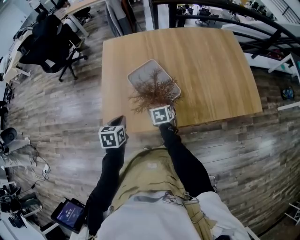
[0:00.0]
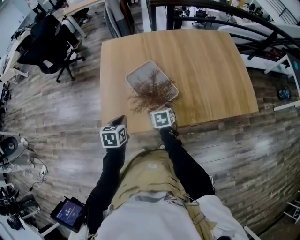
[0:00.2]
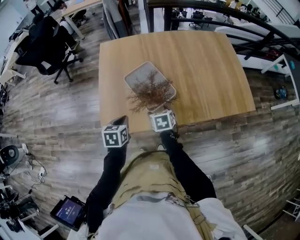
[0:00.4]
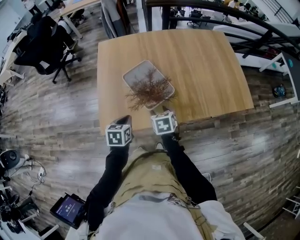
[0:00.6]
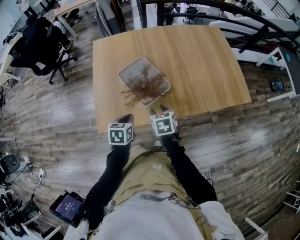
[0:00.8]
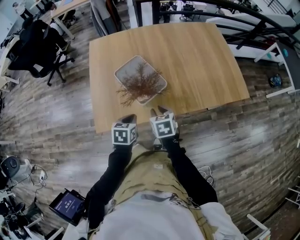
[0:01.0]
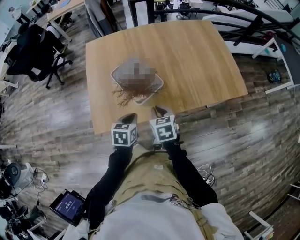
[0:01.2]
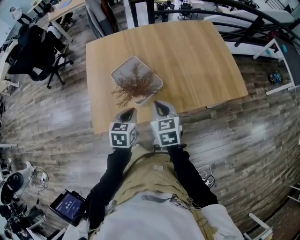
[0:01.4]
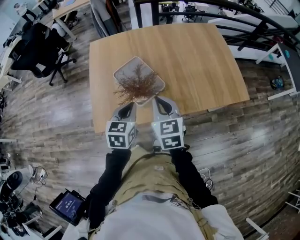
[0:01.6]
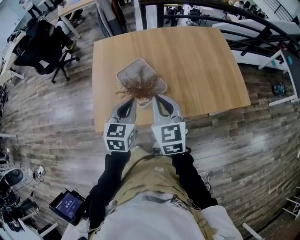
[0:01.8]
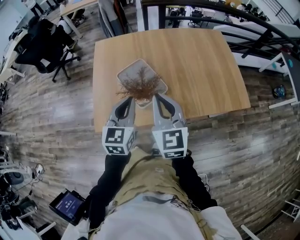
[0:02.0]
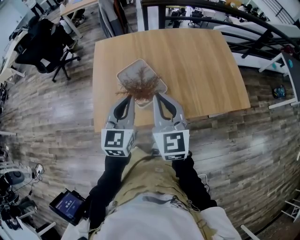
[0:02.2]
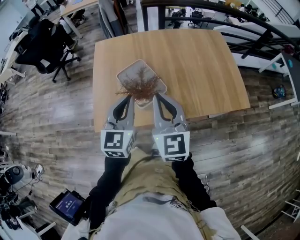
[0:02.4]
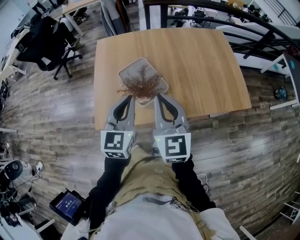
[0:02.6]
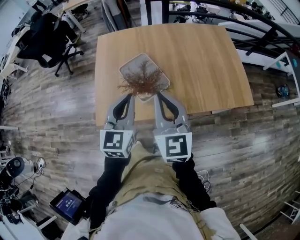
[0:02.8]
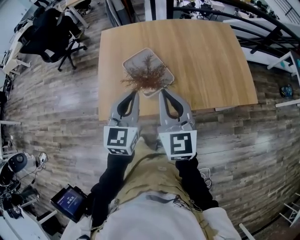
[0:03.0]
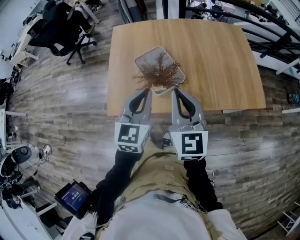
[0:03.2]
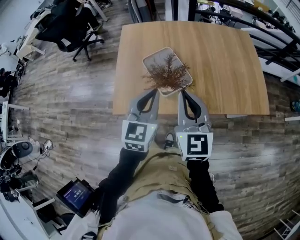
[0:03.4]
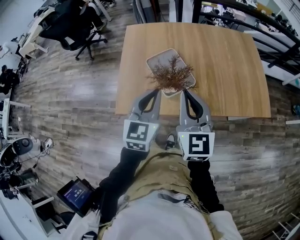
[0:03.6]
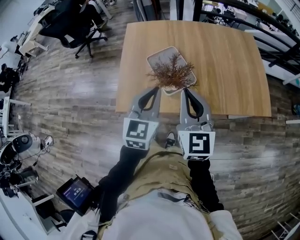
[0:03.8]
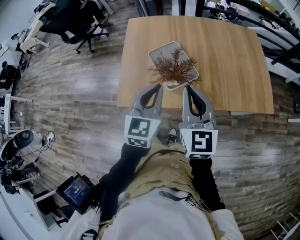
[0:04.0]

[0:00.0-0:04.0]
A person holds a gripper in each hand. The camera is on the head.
0:00.0 to 0:01.4: The right gripper travels upward by about 20 cm, rotates roughly 20 degrees, and closes up, while the left gripper heads to the right and upward, covering approximately 15 cm.
0:01.4 to 0:02.6: Both grippers travel together upward, approximately 15 cm. The left gripper rotates approximately 30 degrees, while the right gripper changes its angle by roughly 30 degrees.
0:02.6 to 0:04.0: There are only small adjustments of the grippers.

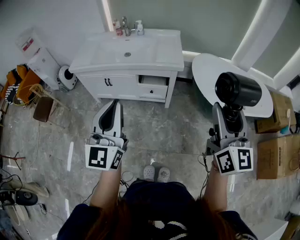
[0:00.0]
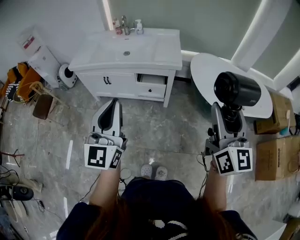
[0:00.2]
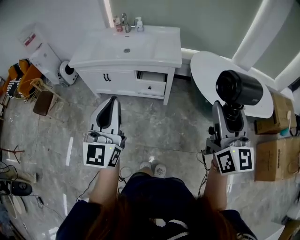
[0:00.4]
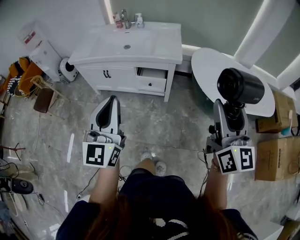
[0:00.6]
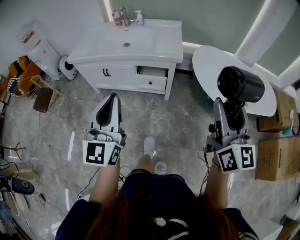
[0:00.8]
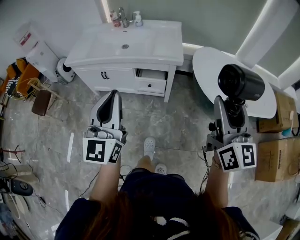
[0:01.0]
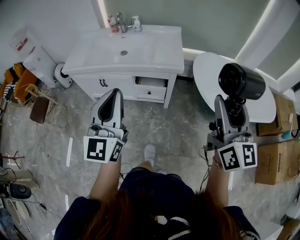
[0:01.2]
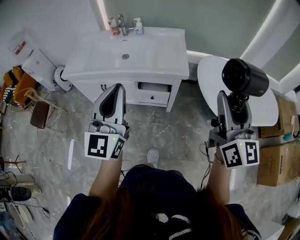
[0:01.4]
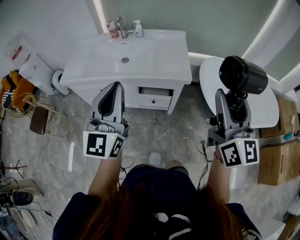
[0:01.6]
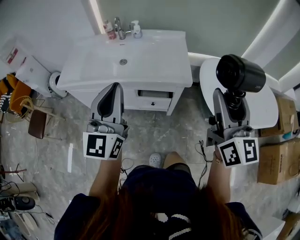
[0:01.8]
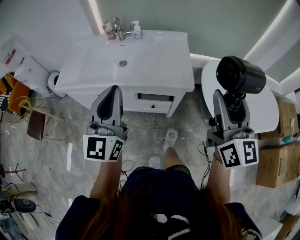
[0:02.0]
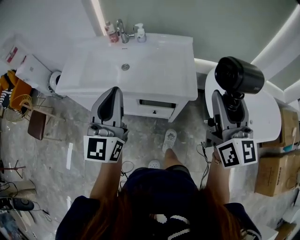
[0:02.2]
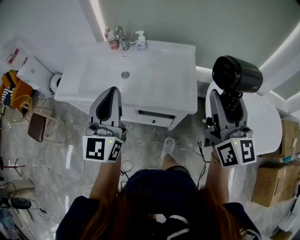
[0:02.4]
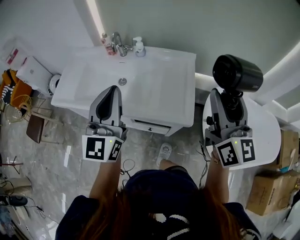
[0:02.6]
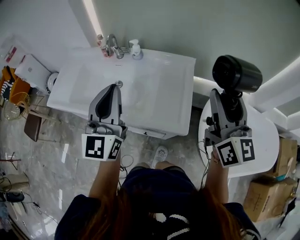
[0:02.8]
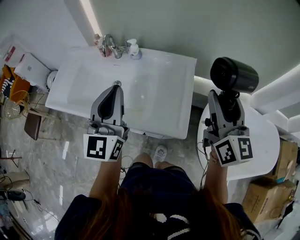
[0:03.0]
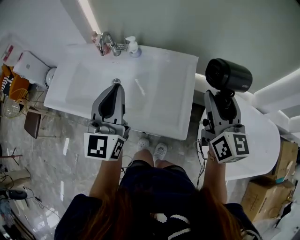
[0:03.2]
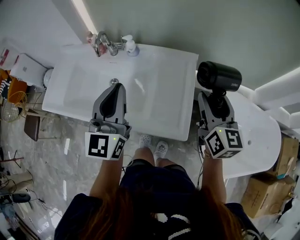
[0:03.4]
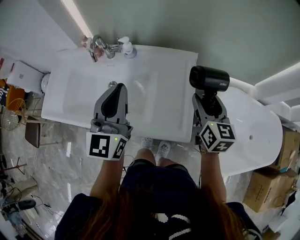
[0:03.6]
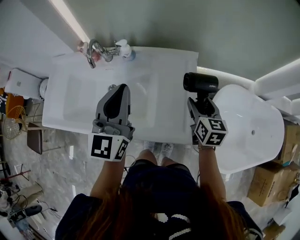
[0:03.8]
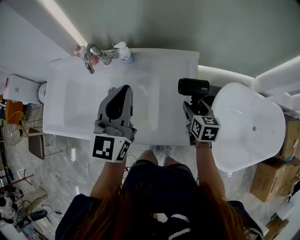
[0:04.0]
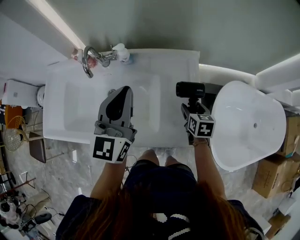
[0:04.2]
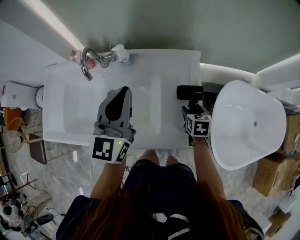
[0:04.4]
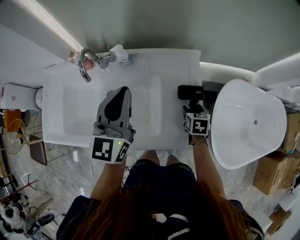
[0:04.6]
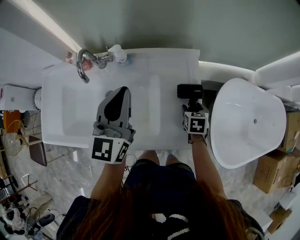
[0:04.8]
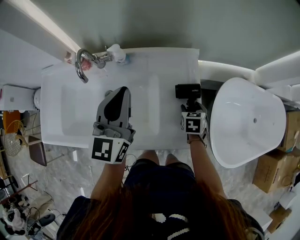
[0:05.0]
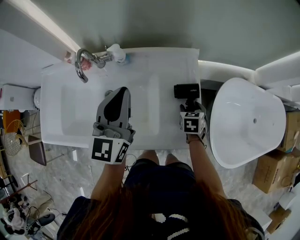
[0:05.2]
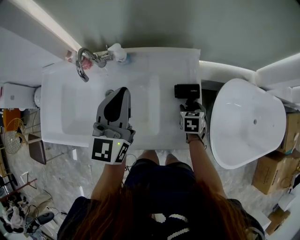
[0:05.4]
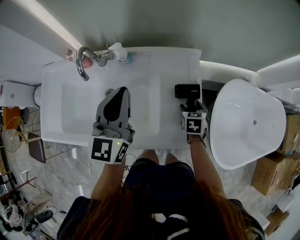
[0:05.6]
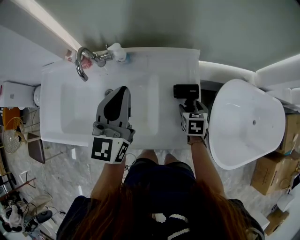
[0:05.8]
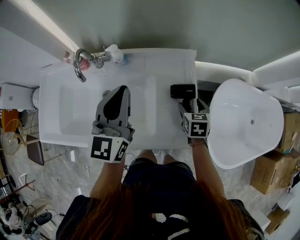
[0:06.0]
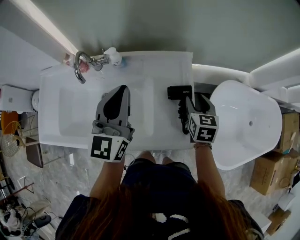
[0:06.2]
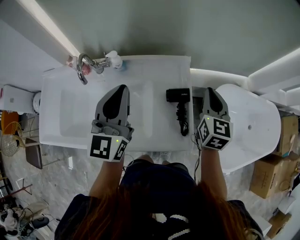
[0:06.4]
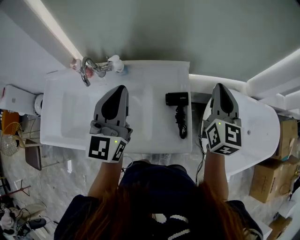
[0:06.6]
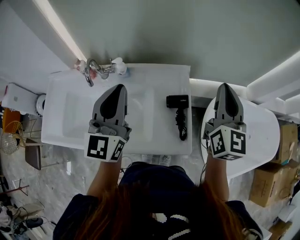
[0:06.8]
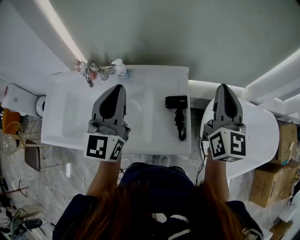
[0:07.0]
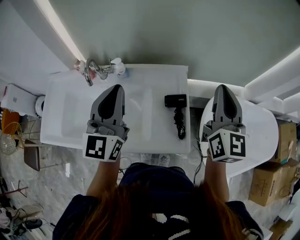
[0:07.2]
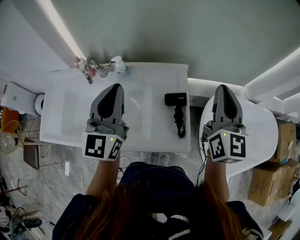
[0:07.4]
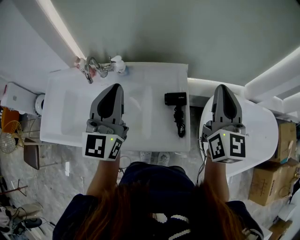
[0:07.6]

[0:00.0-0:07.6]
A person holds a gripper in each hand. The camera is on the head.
0:00.0 to 0:01.6: The grippers both shift forward by approximately 25 cm.
0:01.6 to 0:03.0: The two grippers travel together, forward, approximately 40 cm.
0:03.0 to 0:04.6: The left gripper is displaced forward and downward by approximately 20 cm; the right gripper moves downward, about 40 cm, and points its fingers about 60 degrees further downward.
0:04.6 to 0:06.0: The right gripper shifts by some 5 cm.
0:06.0 to 0:07.6: The right gripper travels upward by some 35 cm, points its fingers approximately 50 degrees further upward, and closes up. The left gripper heads upward and backward, covering some 10 cm.

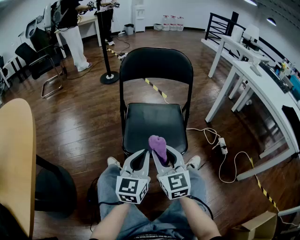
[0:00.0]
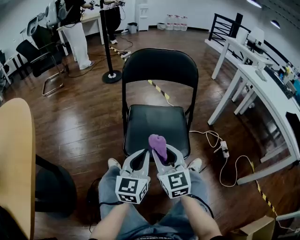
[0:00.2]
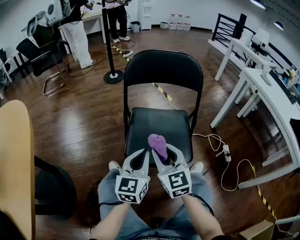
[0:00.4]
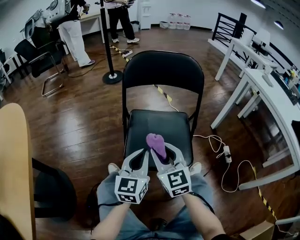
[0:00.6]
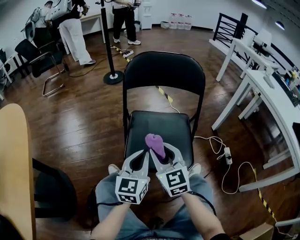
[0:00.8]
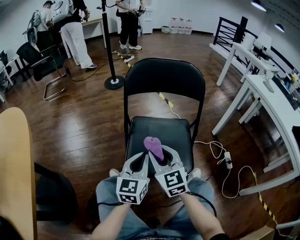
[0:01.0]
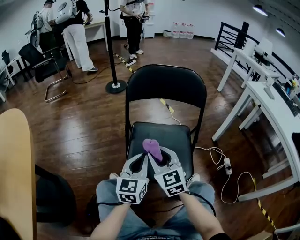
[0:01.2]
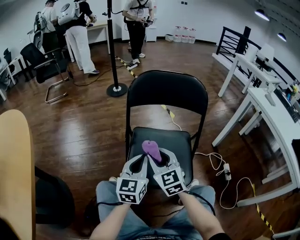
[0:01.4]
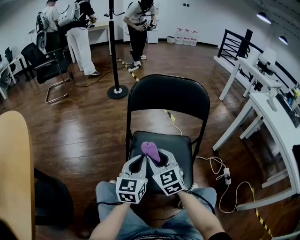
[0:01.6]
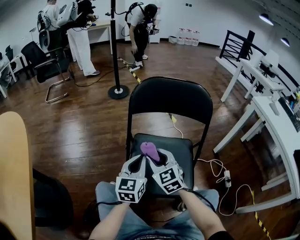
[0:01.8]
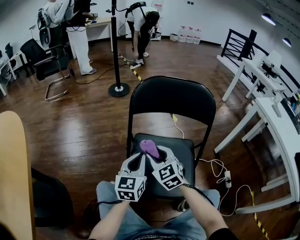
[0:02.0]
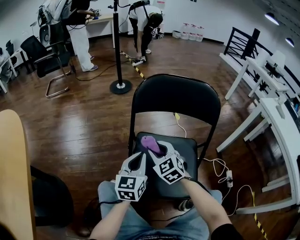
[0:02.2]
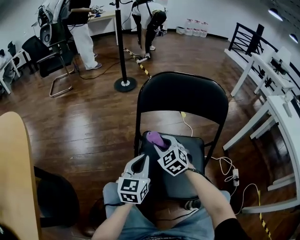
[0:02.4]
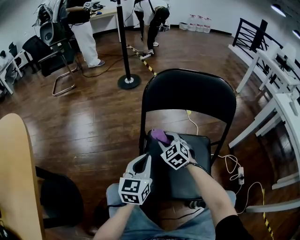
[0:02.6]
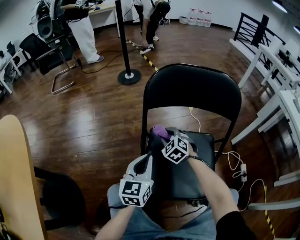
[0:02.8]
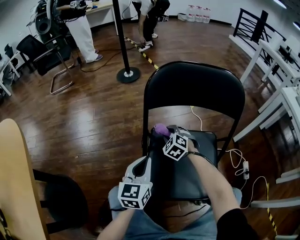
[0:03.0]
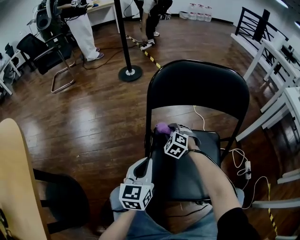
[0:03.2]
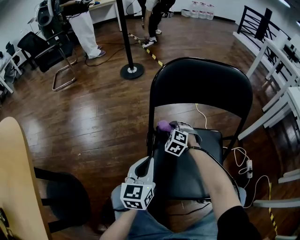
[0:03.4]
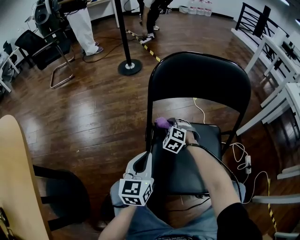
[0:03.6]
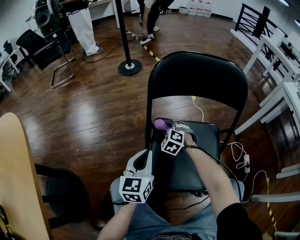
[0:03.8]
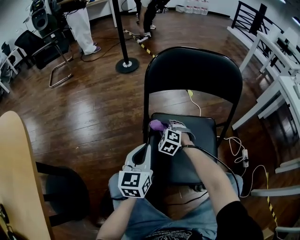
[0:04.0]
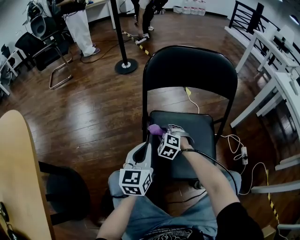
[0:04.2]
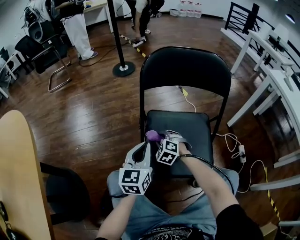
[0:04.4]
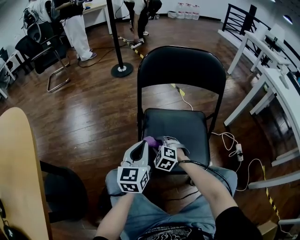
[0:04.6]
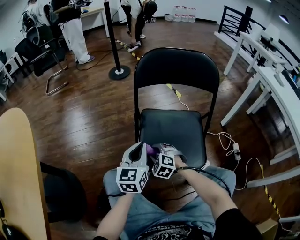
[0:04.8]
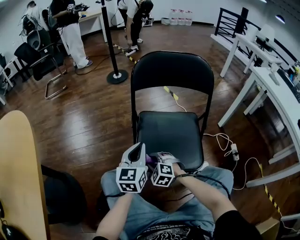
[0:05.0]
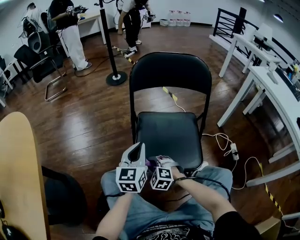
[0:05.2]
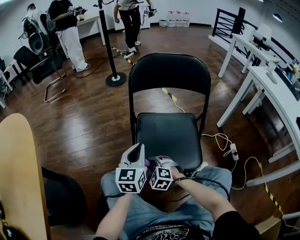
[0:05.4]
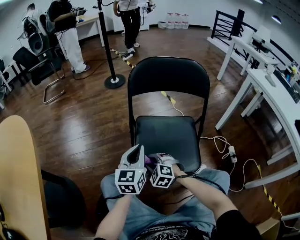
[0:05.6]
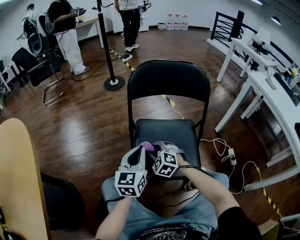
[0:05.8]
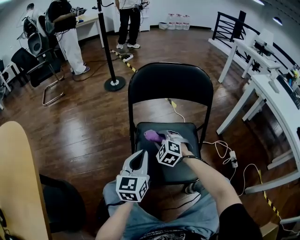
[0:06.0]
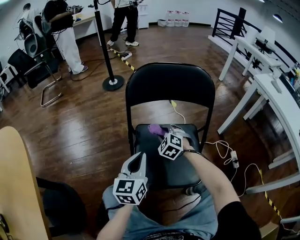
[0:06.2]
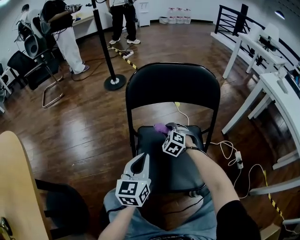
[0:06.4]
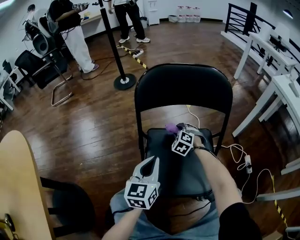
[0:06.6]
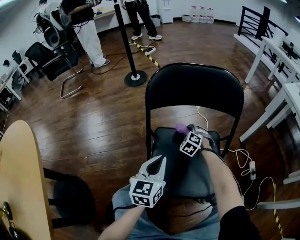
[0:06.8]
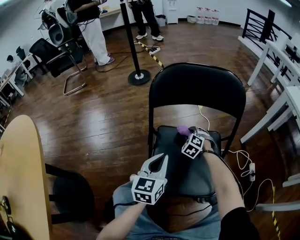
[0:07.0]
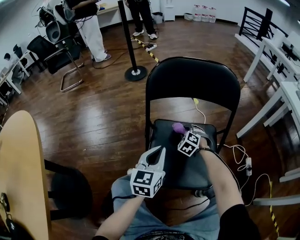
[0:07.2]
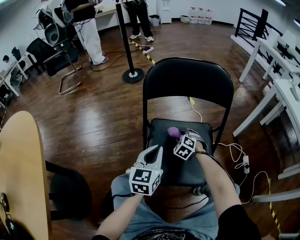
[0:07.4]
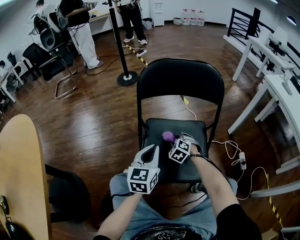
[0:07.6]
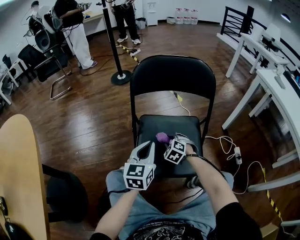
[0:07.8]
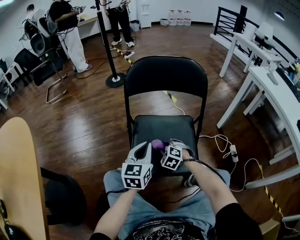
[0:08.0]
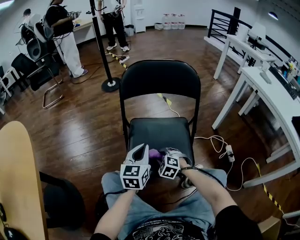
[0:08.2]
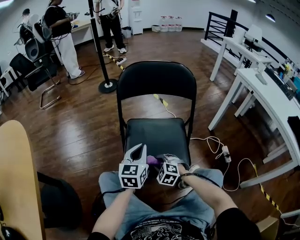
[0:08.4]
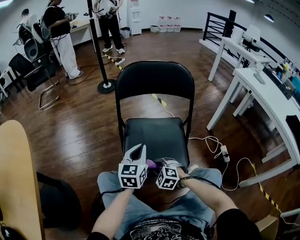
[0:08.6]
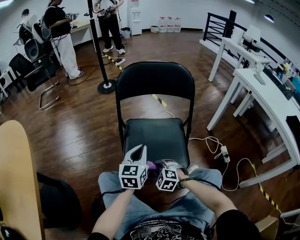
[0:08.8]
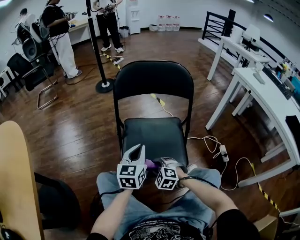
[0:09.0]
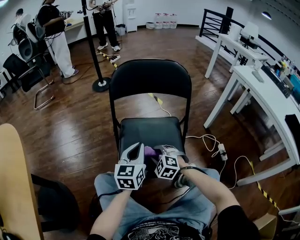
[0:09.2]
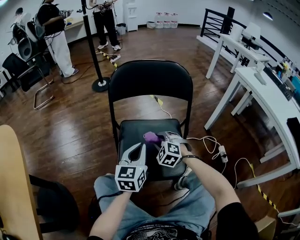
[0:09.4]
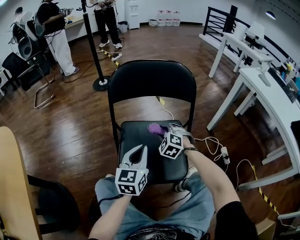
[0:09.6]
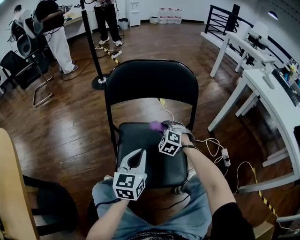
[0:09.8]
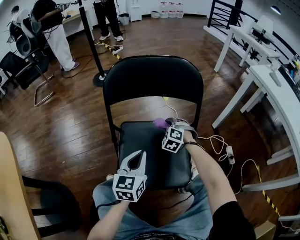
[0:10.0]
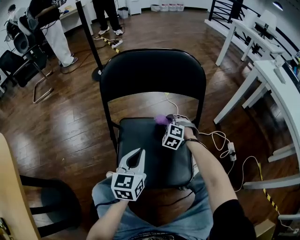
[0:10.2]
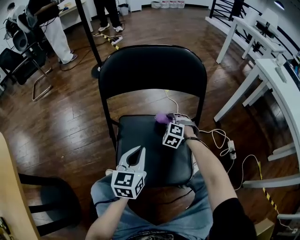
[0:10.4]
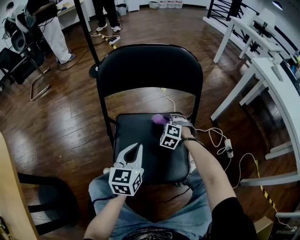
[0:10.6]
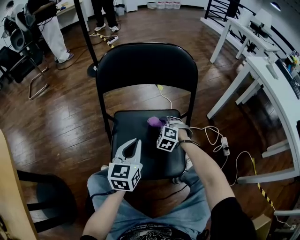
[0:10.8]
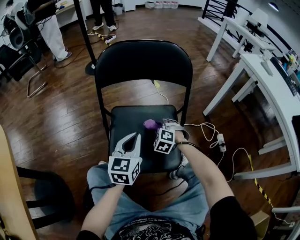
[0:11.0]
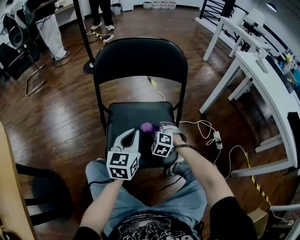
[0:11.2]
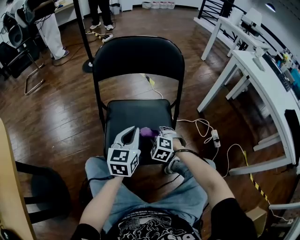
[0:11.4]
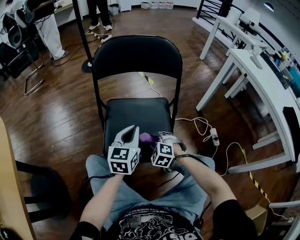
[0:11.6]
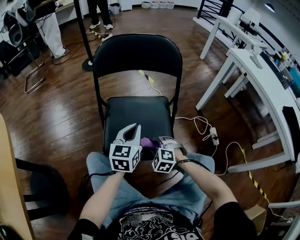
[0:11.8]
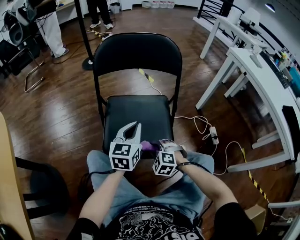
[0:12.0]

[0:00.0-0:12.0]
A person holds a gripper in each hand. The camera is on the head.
0:00.0 to 0:01.6: Both grippers move forward, some 20 cm.
0:01.6 to 0:03.0: The right gripper moves forward and downward, some 25 cm, and rotates approximately 40 degrees. The left gripper shifts approximately 10 cm forward, to the left and downward.
0:03.0 to 0:04.4: The right gripper shifts some 15 cm backward, while the left gripper travels backward by some 5 cm.
0:04.4 to 0:06.0: The right gripper goes roughly 10 cm upward and to the right, and moves roughly 15 cm backward and comes back; the left gripper moves approximately 5 cm.
0:06.0 to 0:07.6: The right gripper travels downward and to the right by roughly 10 cm, and travels forward and back again, about 15 cm each way.
0:07.6 to 0:09.0: The right gripper goes about 20 cm backward.
0:09.0 to 0:10.4: The left gripper shifts about 5 cm forward. The right gripper heads forward, covering about 30 cm.
0:10.4 to 0:12.0: The left gripper goes some 10 cm backward and to the right. Meanwhile the right gripper shifts roughly 30 cm backward.
